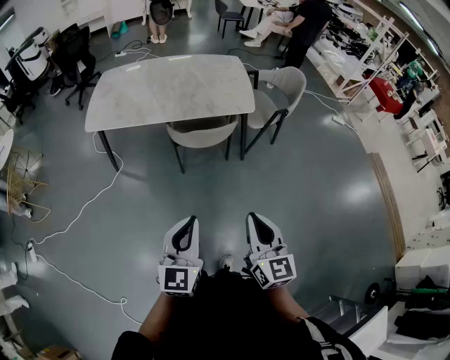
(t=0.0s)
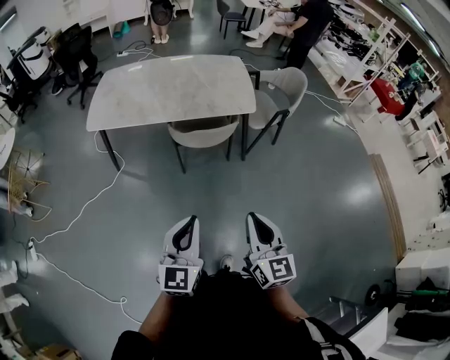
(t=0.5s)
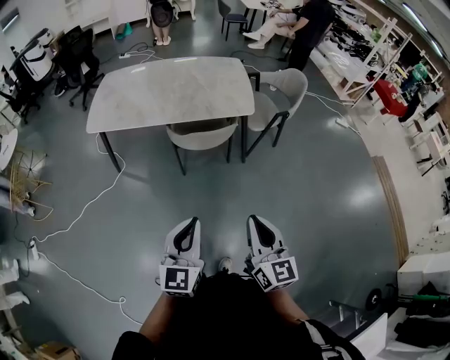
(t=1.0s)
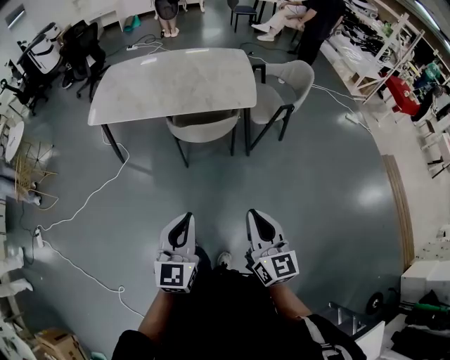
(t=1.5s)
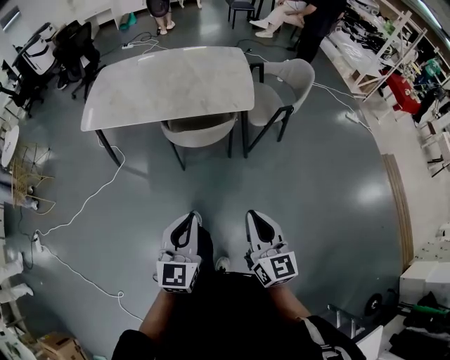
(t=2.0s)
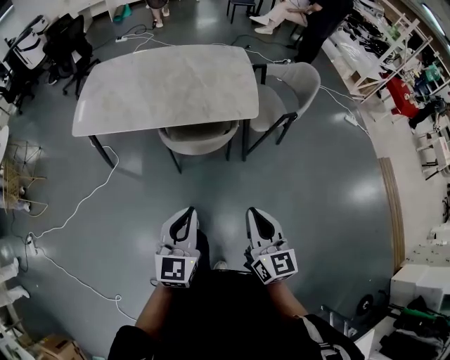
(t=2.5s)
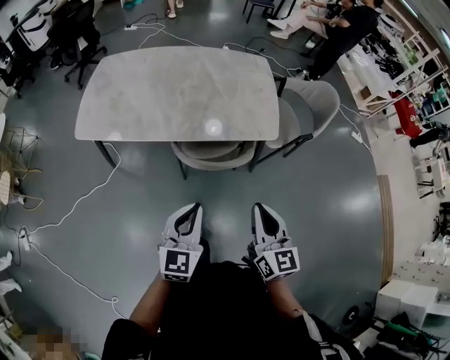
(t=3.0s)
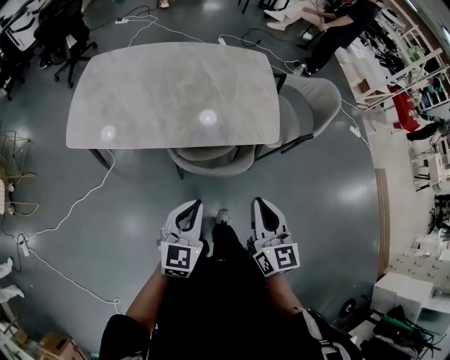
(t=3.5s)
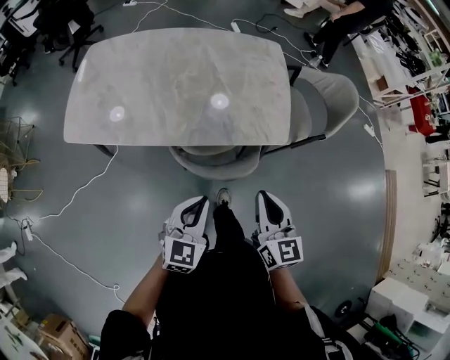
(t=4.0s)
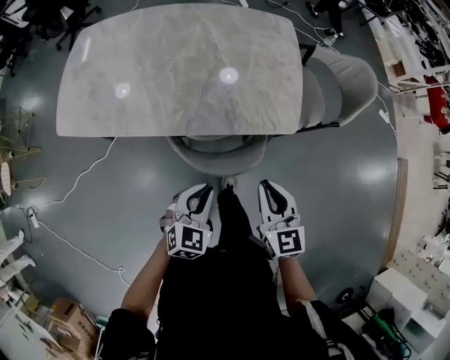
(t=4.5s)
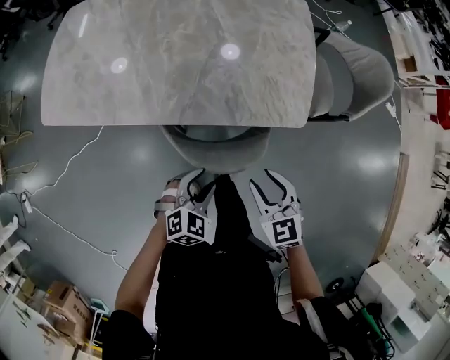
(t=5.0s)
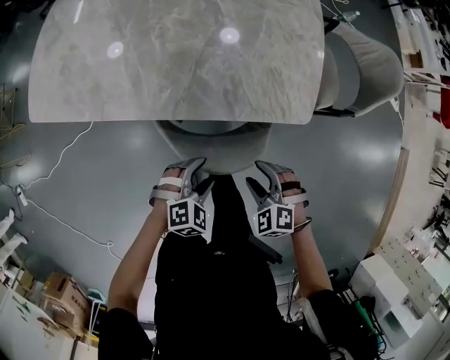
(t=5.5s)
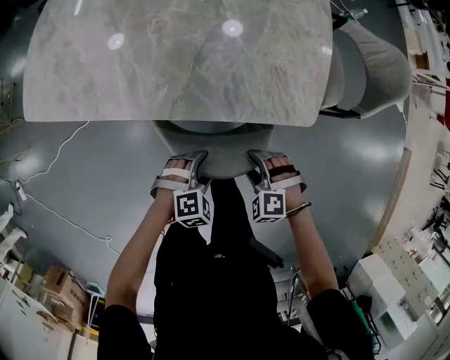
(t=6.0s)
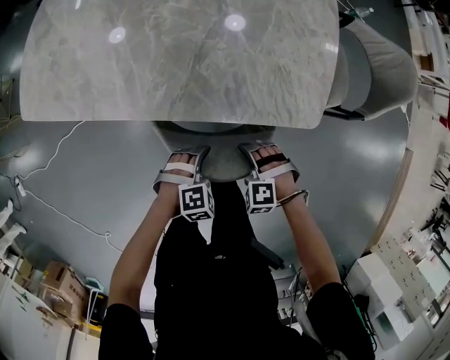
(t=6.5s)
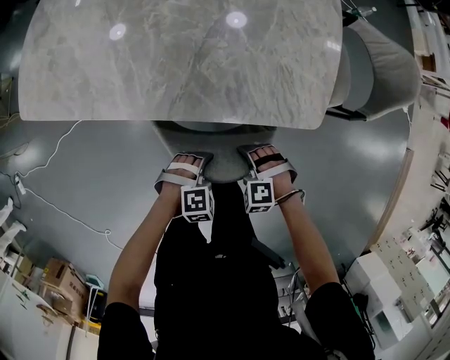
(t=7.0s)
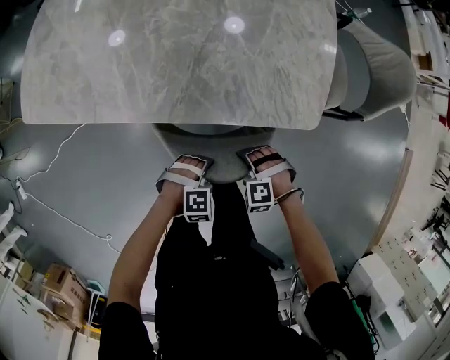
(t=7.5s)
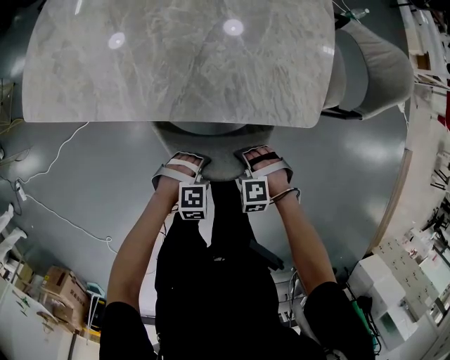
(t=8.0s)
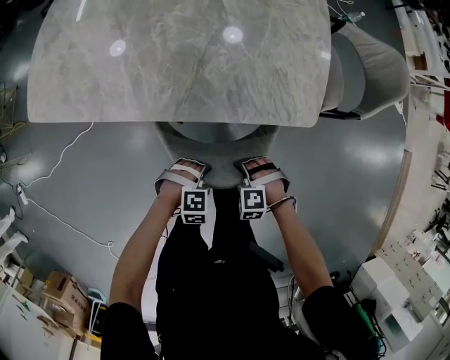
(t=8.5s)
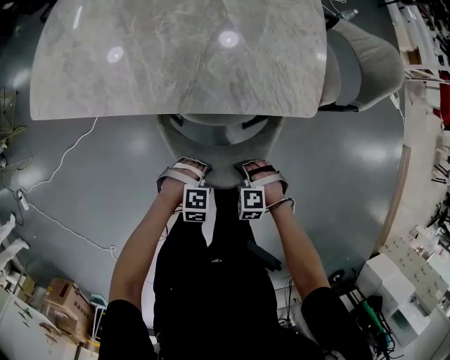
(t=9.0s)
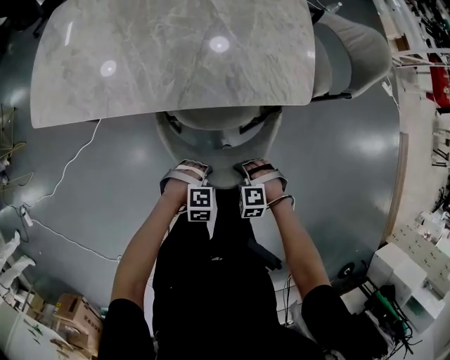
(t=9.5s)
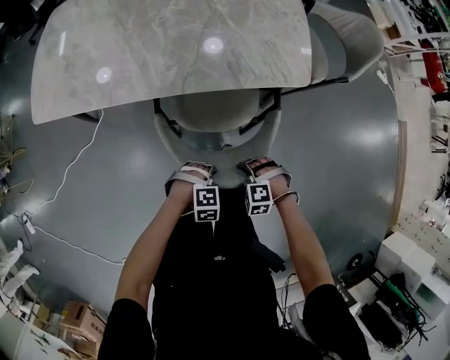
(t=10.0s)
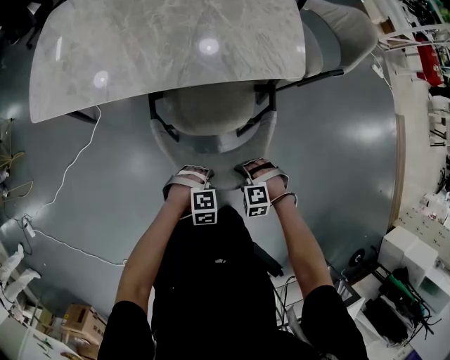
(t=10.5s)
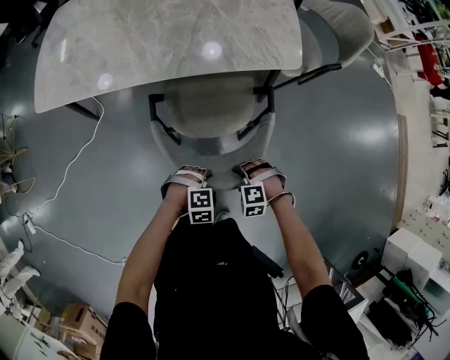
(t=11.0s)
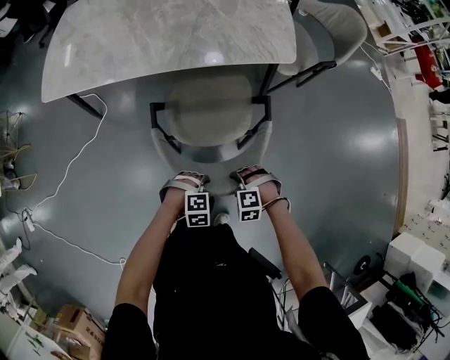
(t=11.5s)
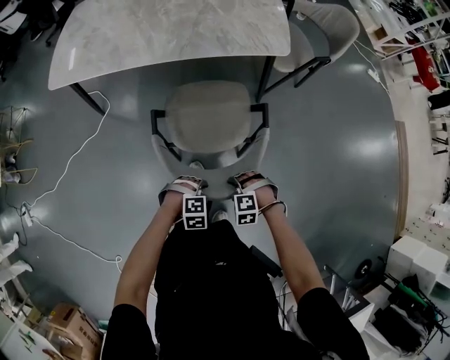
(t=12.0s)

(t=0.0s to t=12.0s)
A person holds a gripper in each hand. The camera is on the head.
t=0.0s - t=2.0s: Both grippers travel together to the right and forward, approximately 10 cm.
t=2.0s - t=4.0s: The two grippers go approximately 35 cm forward.
t=4.0s - t=6.0s: The two grippers go some 30 cm downward. The right gripper tilts its fingers some 50 degrees downward, and opens; the left gripper tilts its fingers about 40 degrees downward, and opens its fingers.
t=6.0s - t=8.0s: The right gripper travels downward by approximately 5 cm, and closes its fingers; the left gripper closes.
t=8.0s - t=10.0s: The right gripper shifts by roughly 15 cm; the left gripper moves some 15 cm.
t=10.0s - t=12.0s: The right gripper changes place by roughly 20 cm, while the left gripper shifts by some 20 cm.

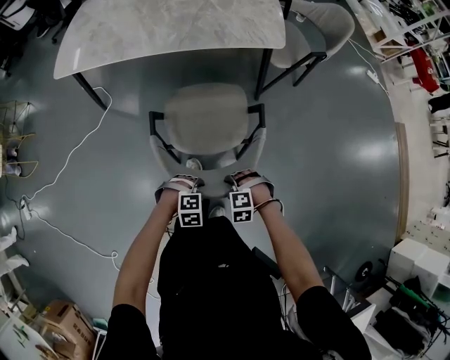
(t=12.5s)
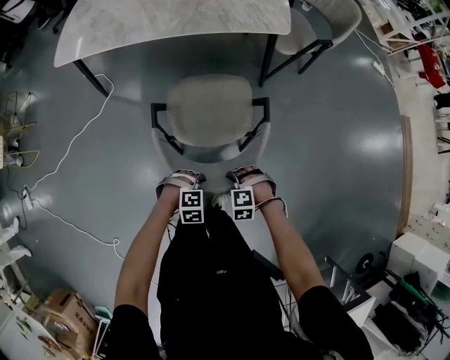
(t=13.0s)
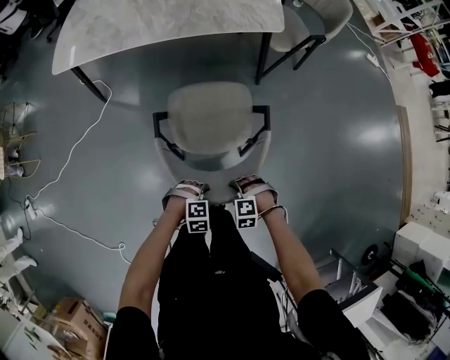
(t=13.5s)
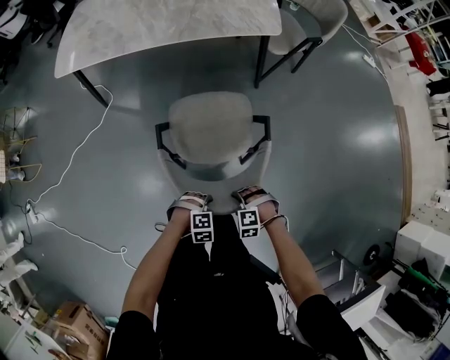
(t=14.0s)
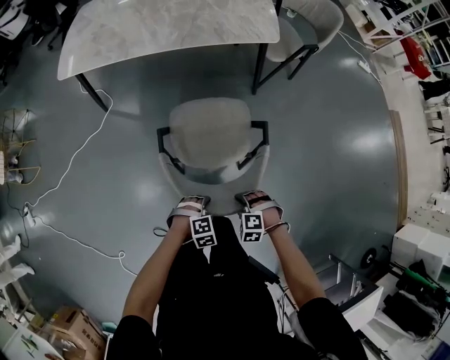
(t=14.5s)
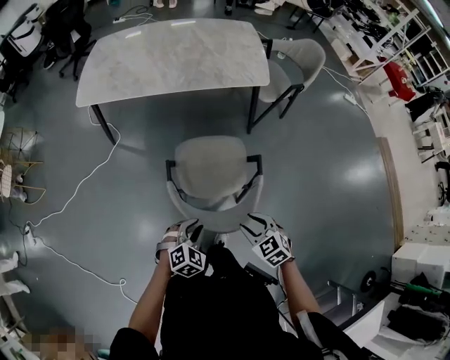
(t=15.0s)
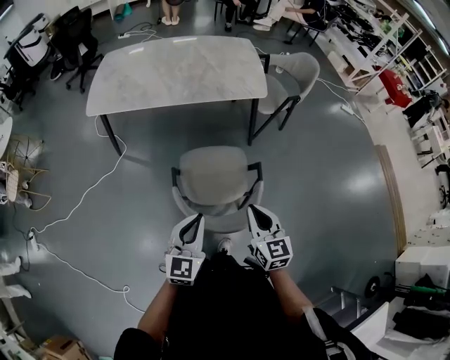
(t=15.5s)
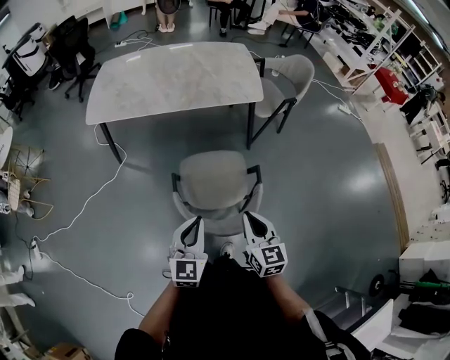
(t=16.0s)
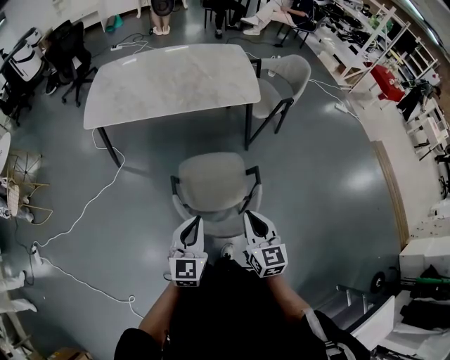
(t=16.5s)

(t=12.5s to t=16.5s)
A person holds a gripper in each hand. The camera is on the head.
t=12.5s - t=14.5s: The left gripper shifts by about 10 cm; the right gripper ends up approximately 10 cm from where it was, and opens.
t=14.5s - t=16.5s: Both grippers travel together upward, about 35 cm. The left gripper angles its fingers upward, by some 60 degrees, and closes. Meanwhile the right gripper angles its fingers upward, by approximately 60 degrees, and closes up.

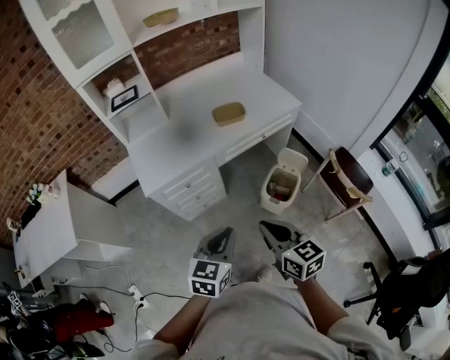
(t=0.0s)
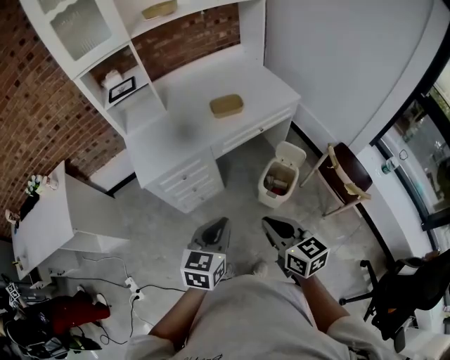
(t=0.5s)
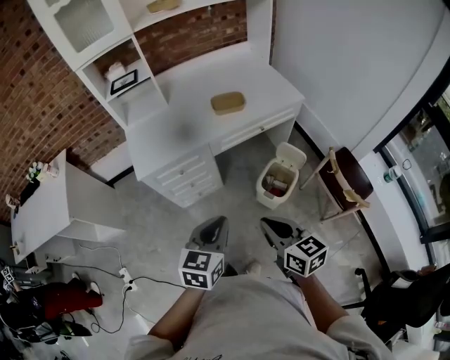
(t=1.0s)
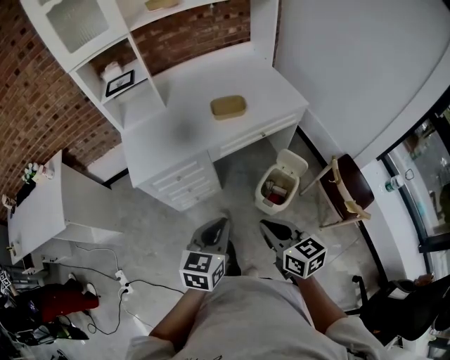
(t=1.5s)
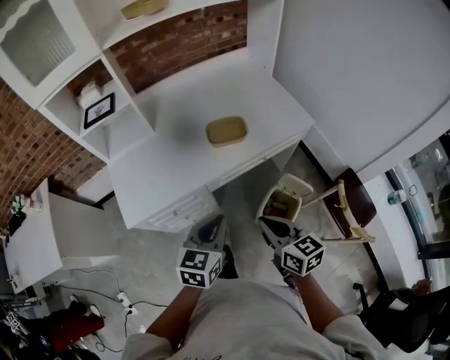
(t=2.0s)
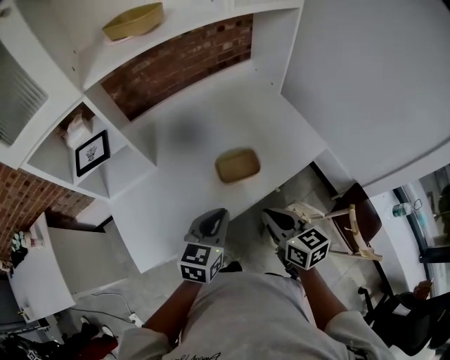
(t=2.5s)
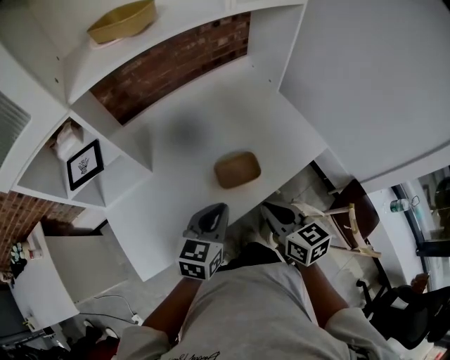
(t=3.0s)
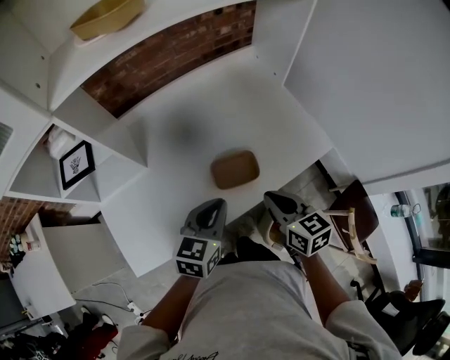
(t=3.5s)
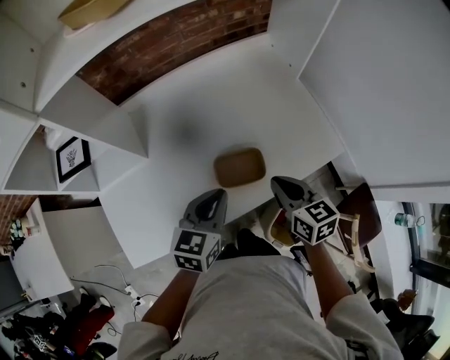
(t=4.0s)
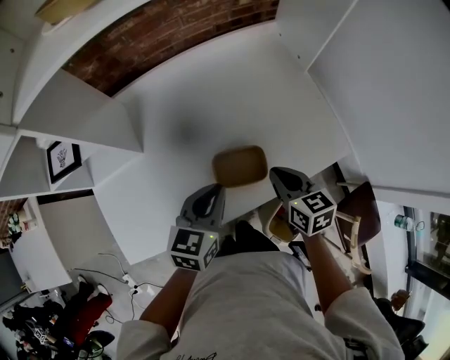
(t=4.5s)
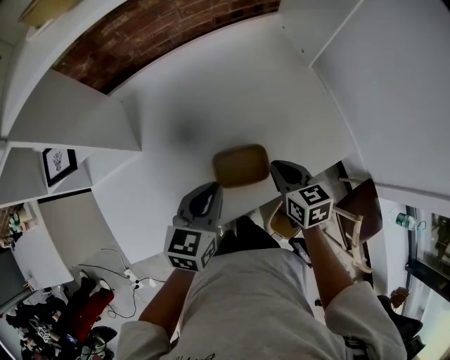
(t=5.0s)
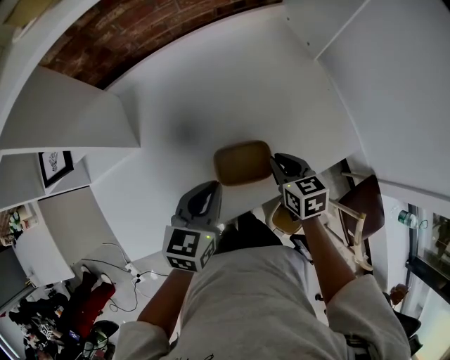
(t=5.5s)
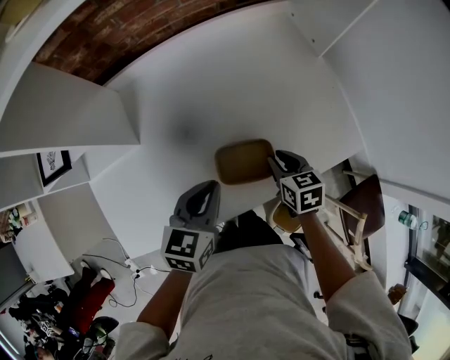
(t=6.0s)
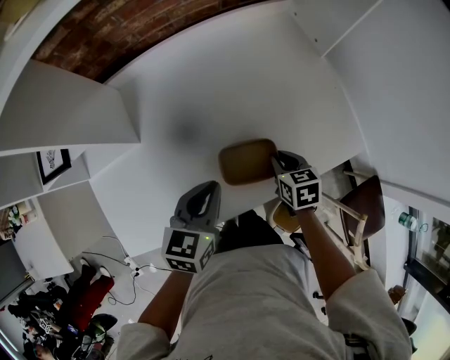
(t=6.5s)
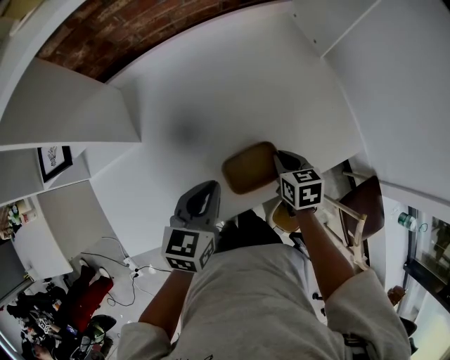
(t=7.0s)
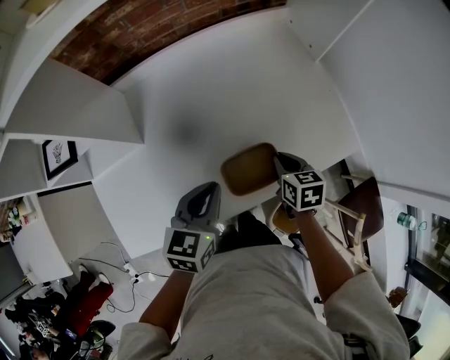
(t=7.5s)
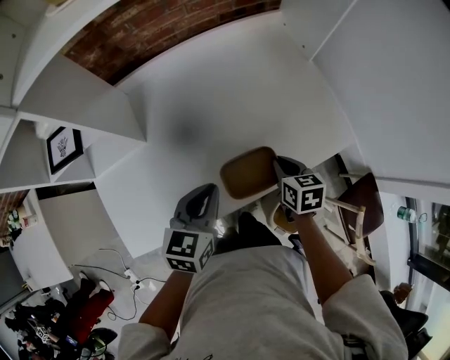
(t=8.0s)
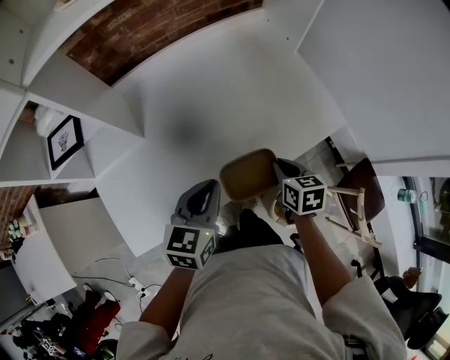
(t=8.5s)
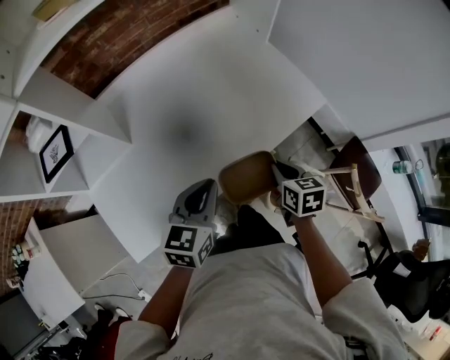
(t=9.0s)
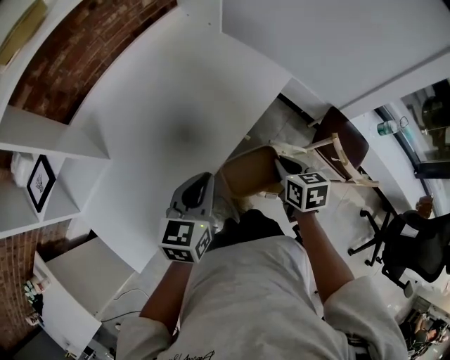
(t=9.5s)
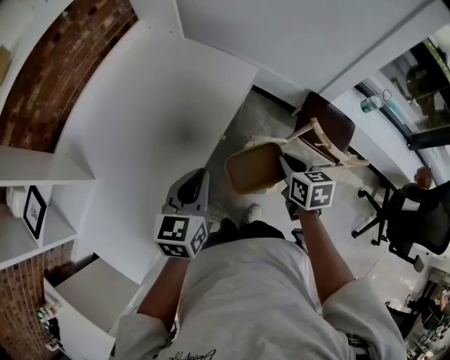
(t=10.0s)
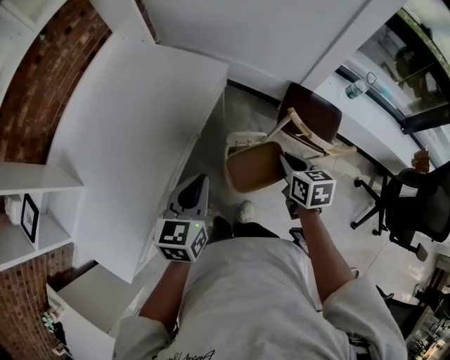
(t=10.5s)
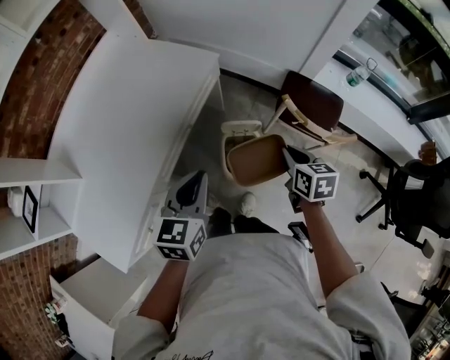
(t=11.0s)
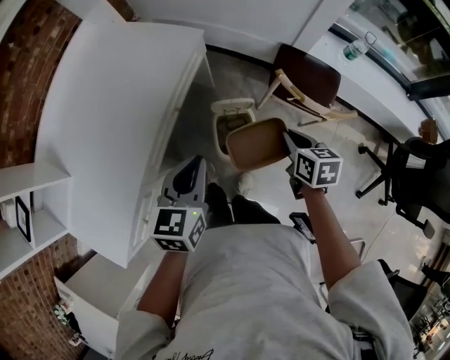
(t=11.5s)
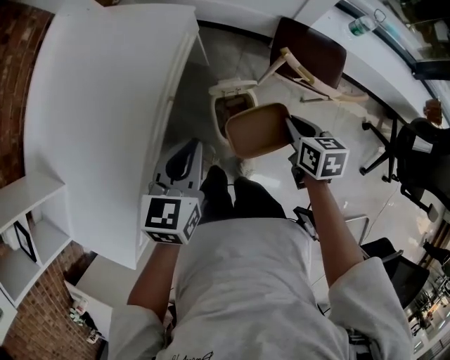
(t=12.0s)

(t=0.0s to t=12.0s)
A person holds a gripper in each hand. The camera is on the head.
t=0.0s - t=2.0s: The grippers both shift forward by approximately 25 cm.
t=2.0s - t=4.0s: Both grippers move forward, approximately 30 cm.
t=4.0s - t=6.0s: The left gripper changes place by about 5 cm. The right gripper shifts approximately 15 cm downward and forward.
t=6.0s - t=8.0s: The right gripper moves about 5 cm, while the left gripper moves about 5 cm.
t=8.0s - t=10.0s: The right gripper changes place by roughly 30 cm, and turns by some 40 degrees, while the left gripper moves some 15 cm, and rotates about 30 degrees.
t=10.0s - t=12.0s: The left gripper goes approximately 15 cm to the right. The right gripper moves to the right and downward, about 20 cm.
